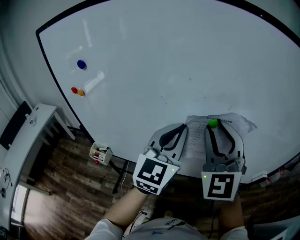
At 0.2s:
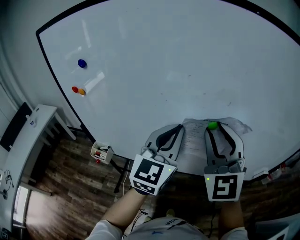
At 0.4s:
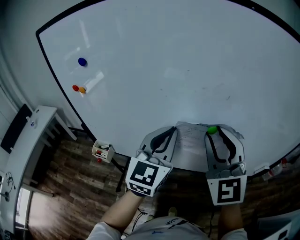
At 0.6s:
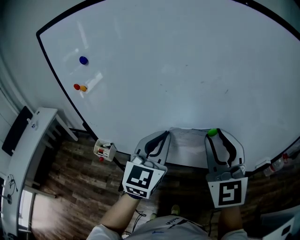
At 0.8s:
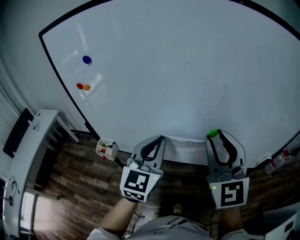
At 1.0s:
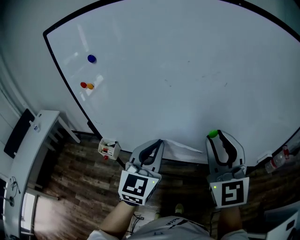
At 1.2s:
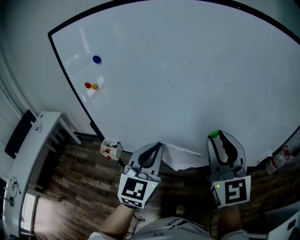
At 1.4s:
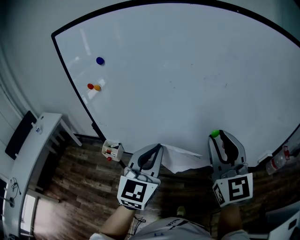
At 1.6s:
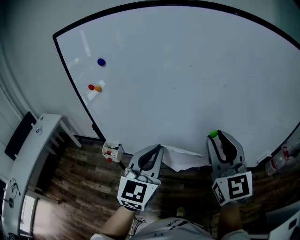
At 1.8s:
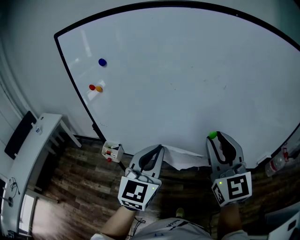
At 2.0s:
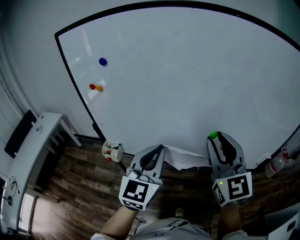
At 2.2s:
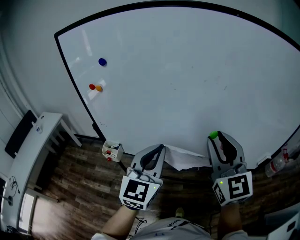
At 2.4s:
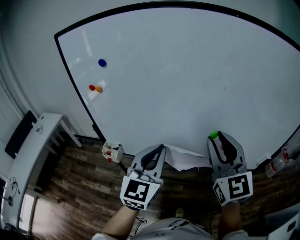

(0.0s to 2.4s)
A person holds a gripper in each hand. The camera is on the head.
0.0s - 1.2s: The right gripper shifts about 10 cm backward, and turns by some 20 degrees. Meanwhile the left gripper shifts approximately 15 cm backward, to the left and downward.
1.2s - 2.4s: The grippers move only a little.

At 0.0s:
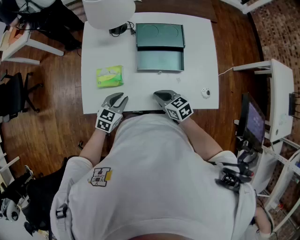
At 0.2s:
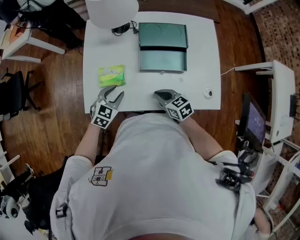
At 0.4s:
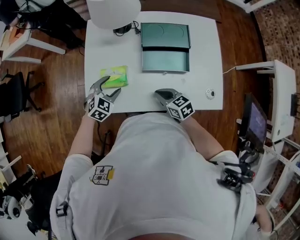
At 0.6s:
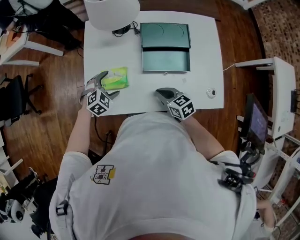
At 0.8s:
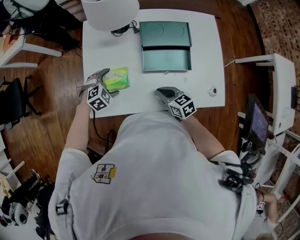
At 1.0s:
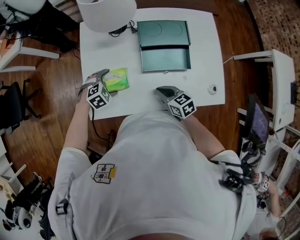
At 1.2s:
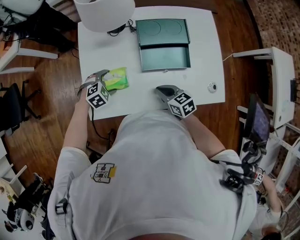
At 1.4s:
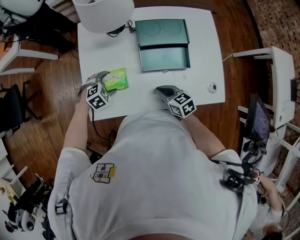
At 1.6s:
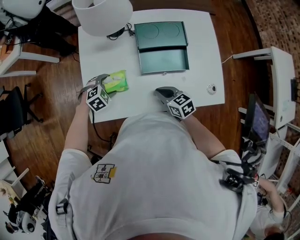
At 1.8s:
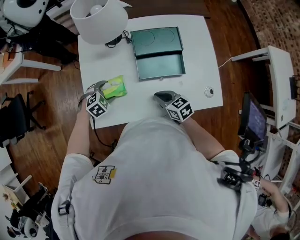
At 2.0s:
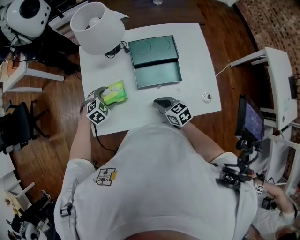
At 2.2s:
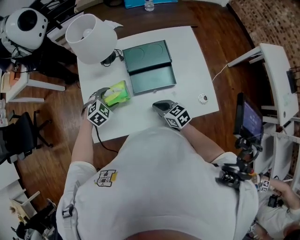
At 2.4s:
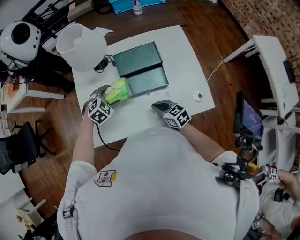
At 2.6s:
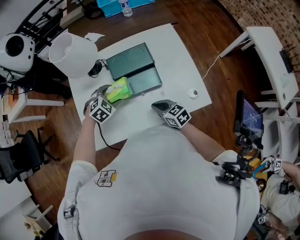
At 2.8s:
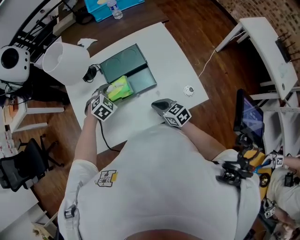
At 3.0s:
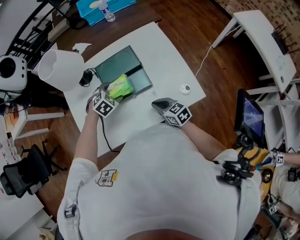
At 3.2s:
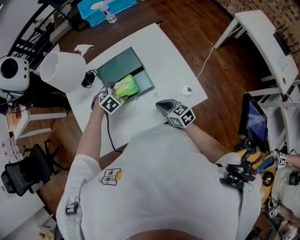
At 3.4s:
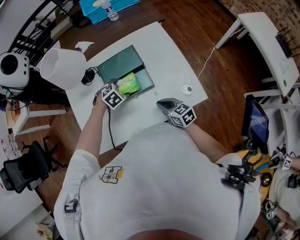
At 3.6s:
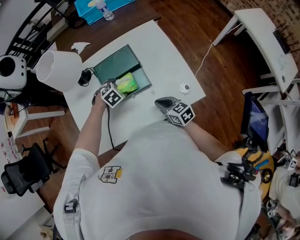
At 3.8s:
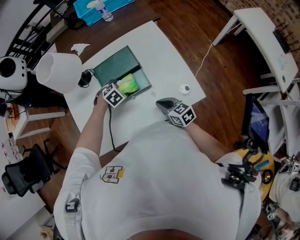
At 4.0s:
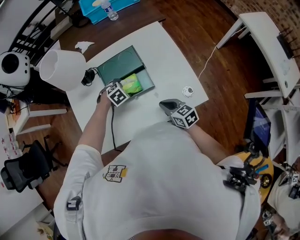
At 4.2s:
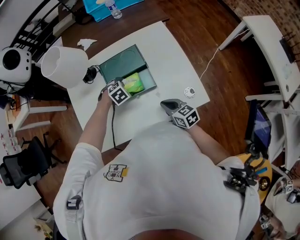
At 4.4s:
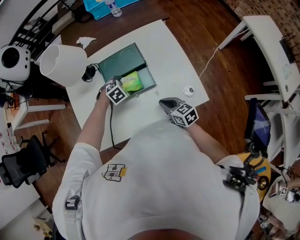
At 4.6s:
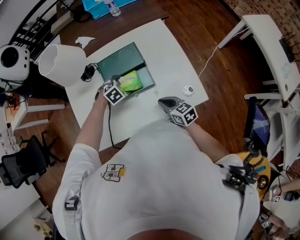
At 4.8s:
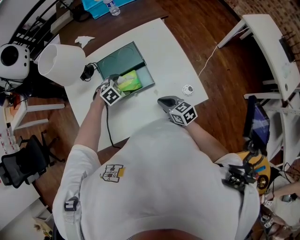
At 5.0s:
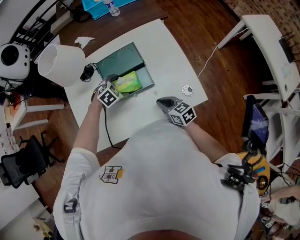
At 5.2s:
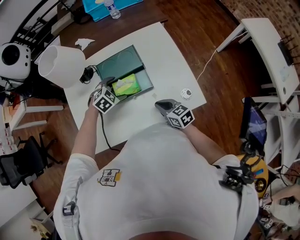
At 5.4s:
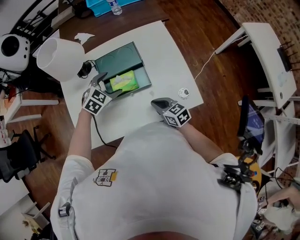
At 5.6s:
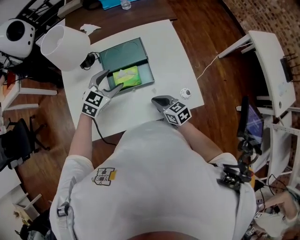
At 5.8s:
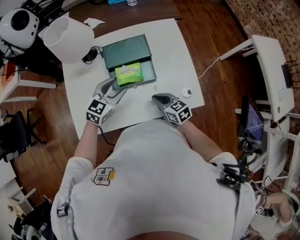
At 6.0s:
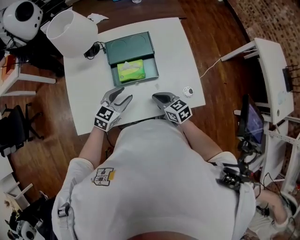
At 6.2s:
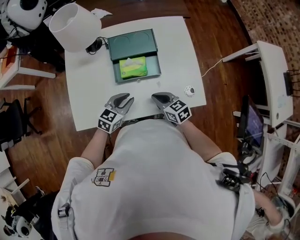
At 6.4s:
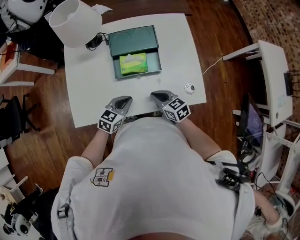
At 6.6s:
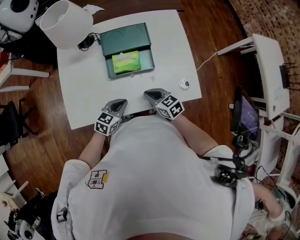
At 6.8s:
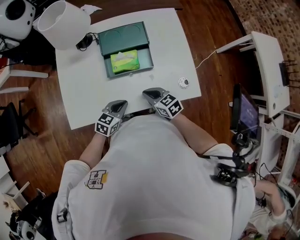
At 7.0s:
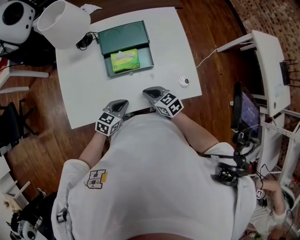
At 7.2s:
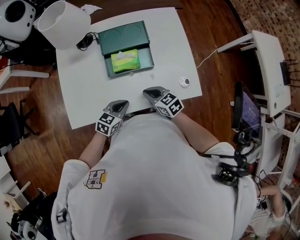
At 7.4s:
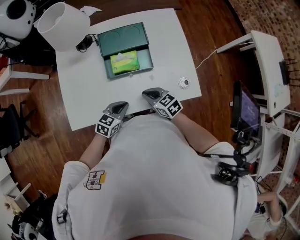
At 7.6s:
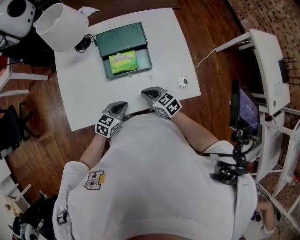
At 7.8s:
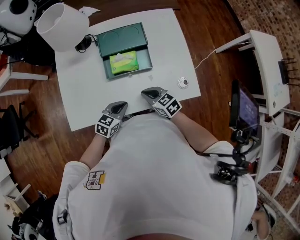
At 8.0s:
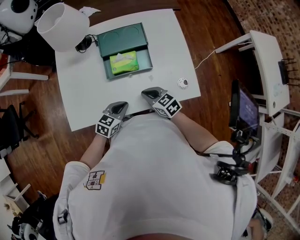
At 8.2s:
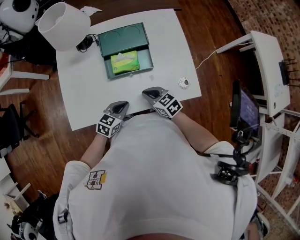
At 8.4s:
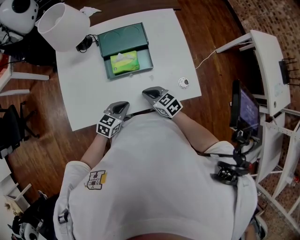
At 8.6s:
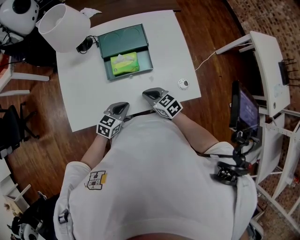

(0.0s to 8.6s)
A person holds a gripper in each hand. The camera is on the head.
0.0s - 1.4s: The left gripper is displaced forward and to the left by some 15 cm, rotates around the line of its fingers by roughly 40 degrees, clockwise from behind, and opens.
1.4s - 2.8s: The left gripper shifts about 20 cm to the right and upward, while the right gripper travels to the right by some 10 cm.
2.8s - 4.4s: The right gripper moves roughly 5 cm. Meanwhile the left gripper shifts some 10 cm downward.
4.4s - 5.8s: The left gripper shifts roughly 15 cm upward, and points its fingers about 40 degrees further upward.
5.8s - 7.2s: The left gripper heads backward and downward, covering about 20 cm, swivels about 20 degrees, and closes.
7.2s - 8.6s: The two grippers keep their place.

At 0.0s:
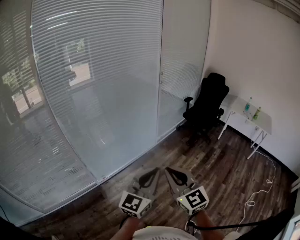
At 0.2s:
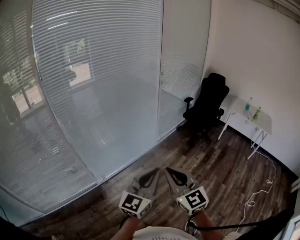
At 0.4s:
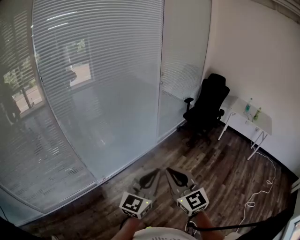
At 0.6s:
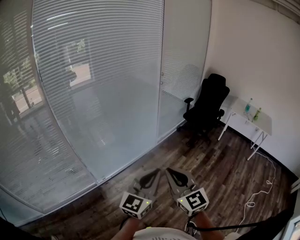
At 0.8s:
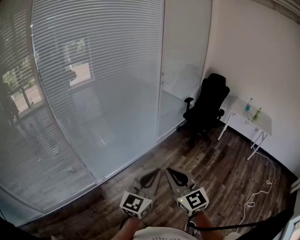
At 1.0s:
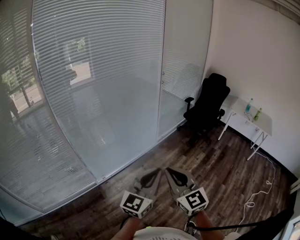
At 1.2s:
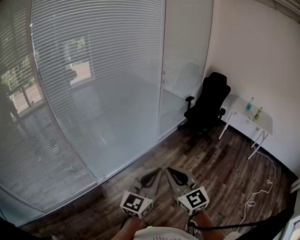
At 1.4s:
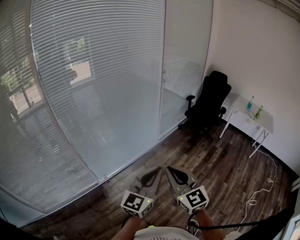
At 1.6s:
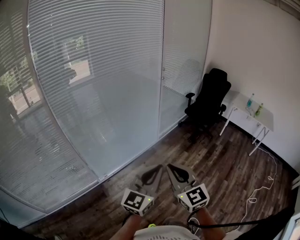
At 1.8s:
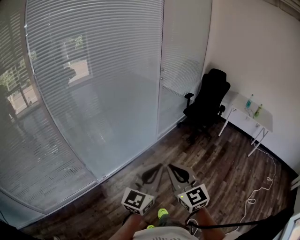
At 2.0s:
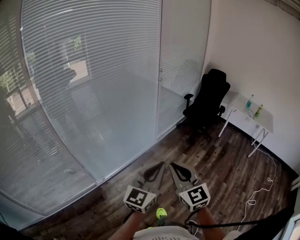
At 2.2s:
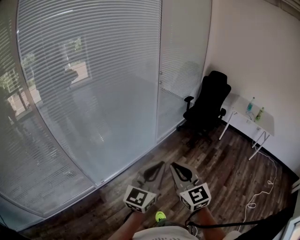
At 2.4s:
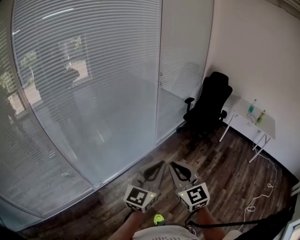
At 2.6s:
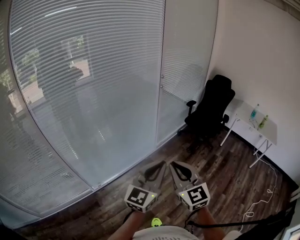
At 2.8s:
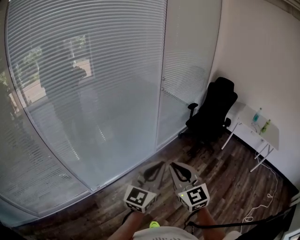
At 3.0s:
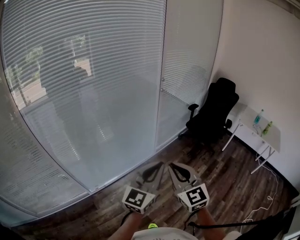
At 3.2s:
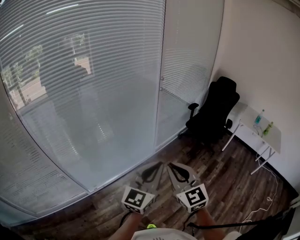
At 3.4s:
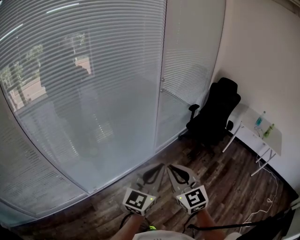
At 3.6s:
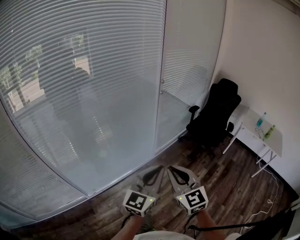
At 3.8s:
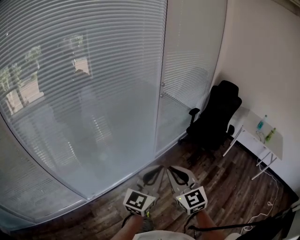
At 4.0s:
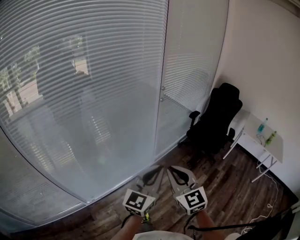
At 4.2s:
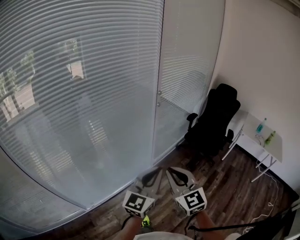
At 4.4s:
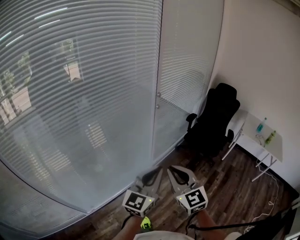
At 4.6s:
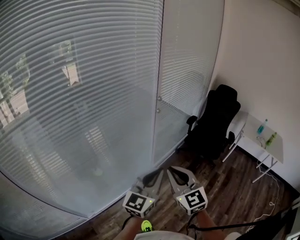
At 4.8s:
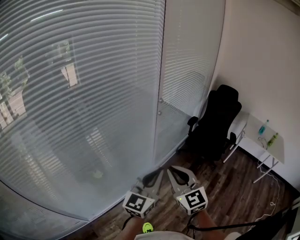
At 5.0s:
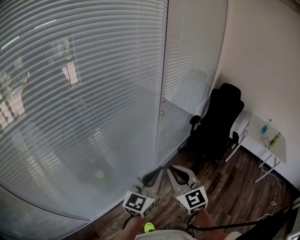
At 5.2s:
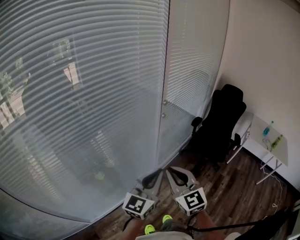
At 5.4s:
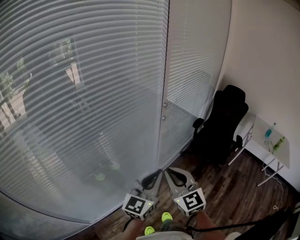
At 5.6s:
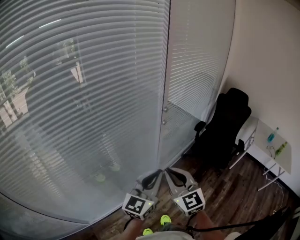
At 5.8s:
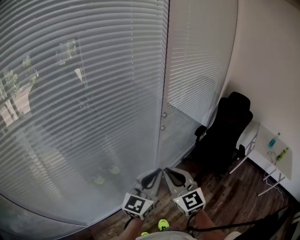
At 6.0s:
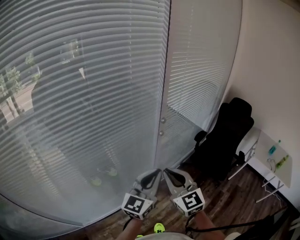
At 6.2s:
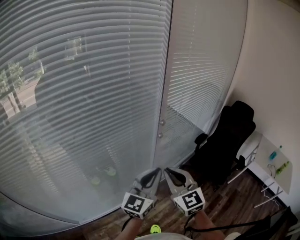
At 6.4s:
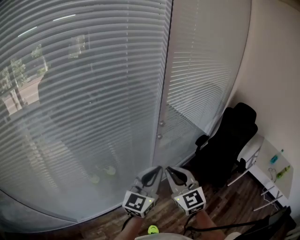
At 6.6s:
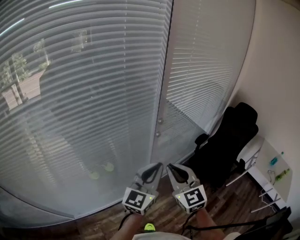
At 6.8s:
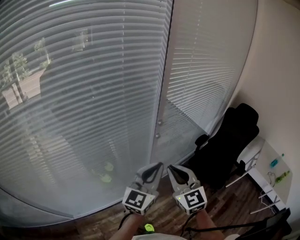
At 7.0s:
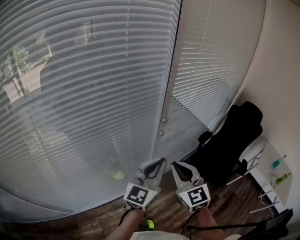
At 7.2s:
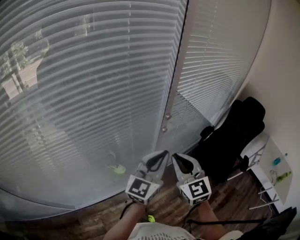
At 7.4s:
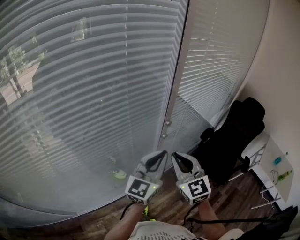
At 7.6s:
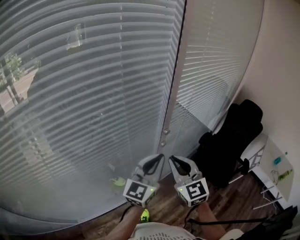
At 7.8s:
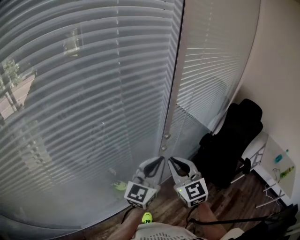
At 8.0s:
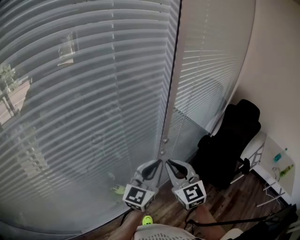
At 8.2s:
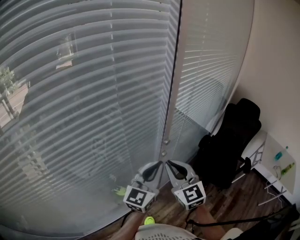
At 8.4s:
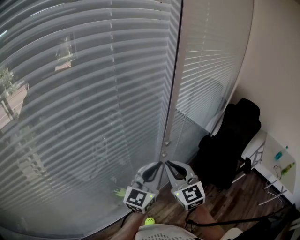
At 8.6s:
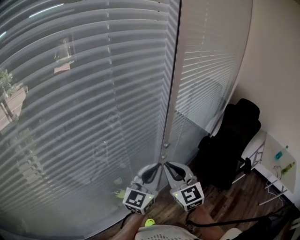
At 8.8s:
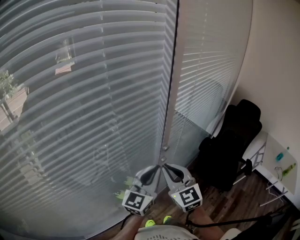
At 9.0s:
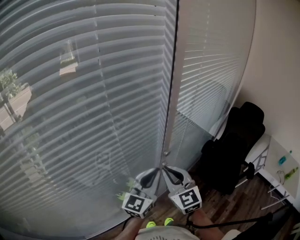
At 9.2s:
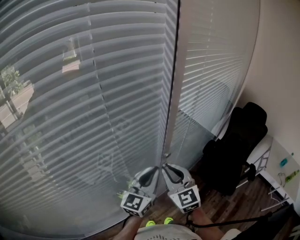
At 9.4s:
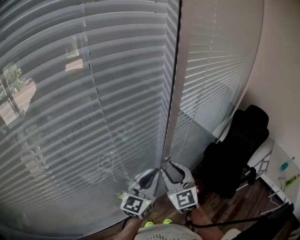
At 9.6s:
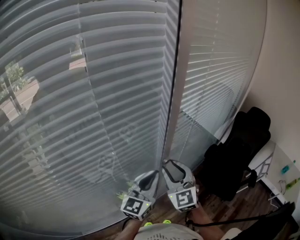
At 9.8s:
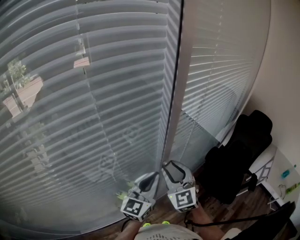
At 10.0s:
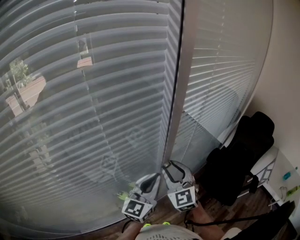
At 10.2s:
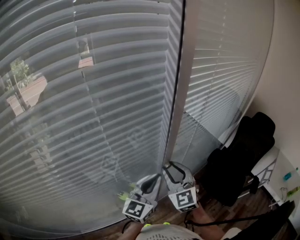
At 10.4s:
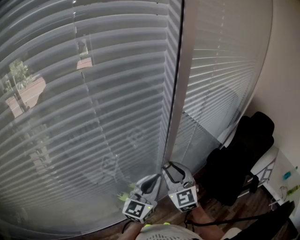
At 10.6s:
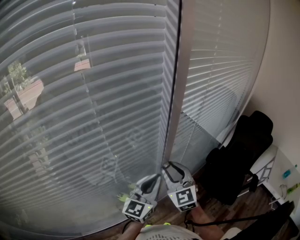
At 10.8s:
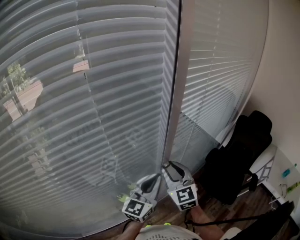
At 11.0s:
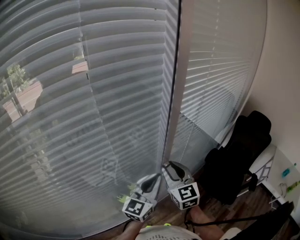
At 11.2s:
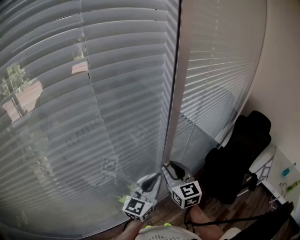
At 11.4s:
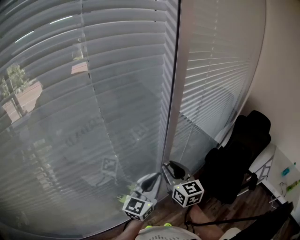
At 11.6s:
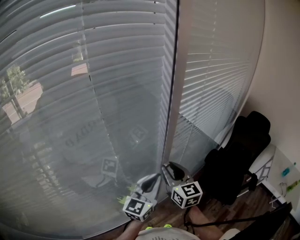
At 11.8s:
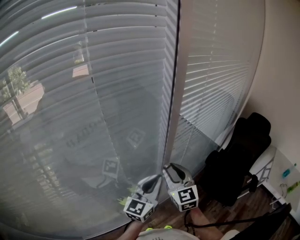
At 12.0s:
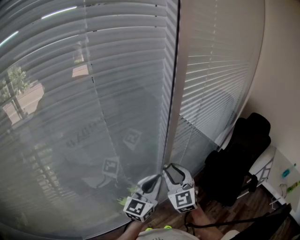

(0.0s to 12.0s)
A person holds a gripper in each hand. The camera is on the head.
0.0s - 1.6s: The grippers make only small movements.
1.6s - 3.0s: Both grippers move forward, some 25 cm.
3.0s - 4.4s: Both grippers travel together forward, some 20 cm.
4.4s - 6.0s: Both grippers travel together forward, roughly 25 cm.
6.0s - 7.6s: Both grippers travel together forward, some 15 cm.
7.6s - 9.0s: Both grippers move forward, roughly 5 cm.
9.0s - 10.4s: The right gripper travels forward by about 5 cm, and opens its fingers.

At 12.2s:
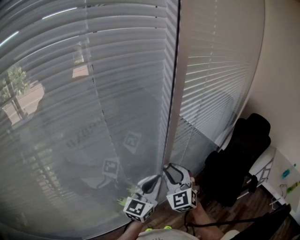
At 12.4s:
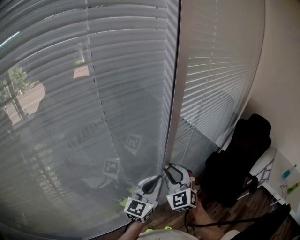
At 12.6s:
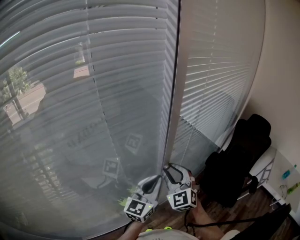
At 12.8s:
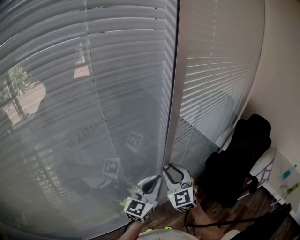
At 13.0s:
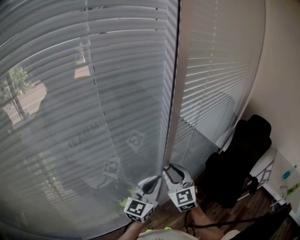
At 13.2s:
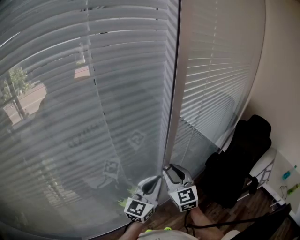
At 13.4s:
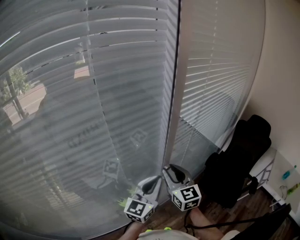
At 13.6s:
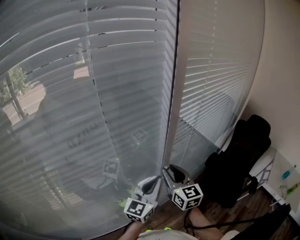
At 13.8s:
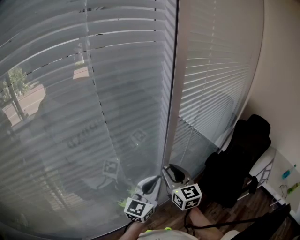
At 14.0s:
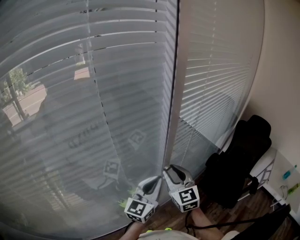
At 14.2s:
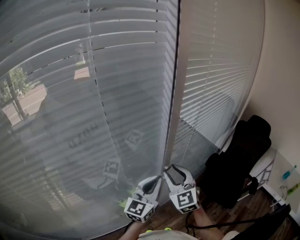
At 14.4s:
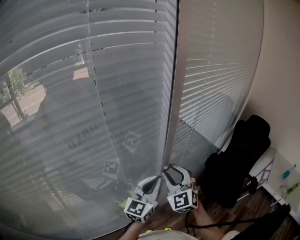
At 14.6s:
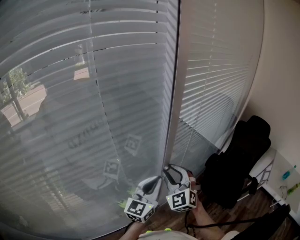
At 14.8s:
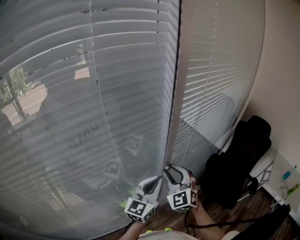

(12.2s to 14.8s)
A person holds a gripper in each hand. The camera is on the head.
12.2s - 13.4s: The right gripper changes its angle by some 30 degrees.
13.4s - 14.8s: The right gripper turns by roughly 40 degrees.
